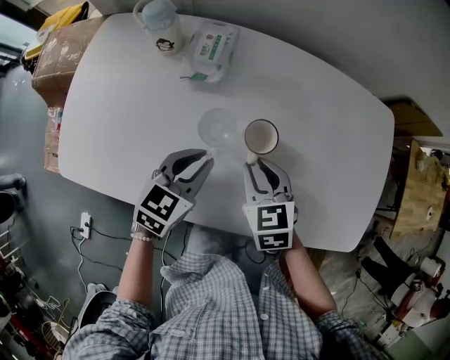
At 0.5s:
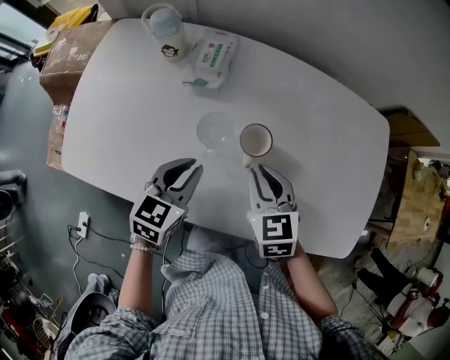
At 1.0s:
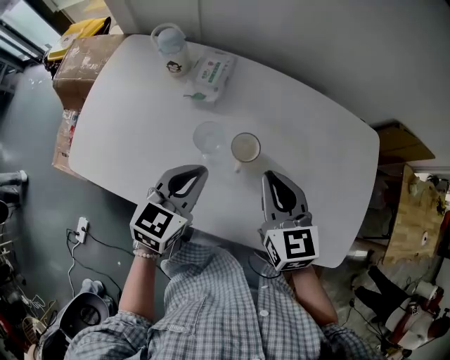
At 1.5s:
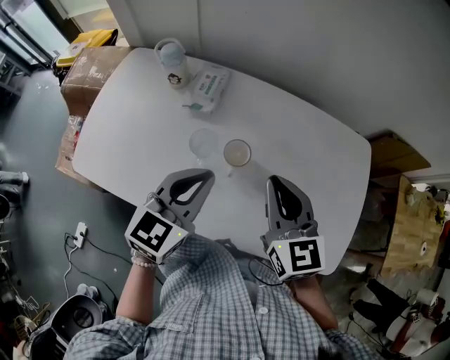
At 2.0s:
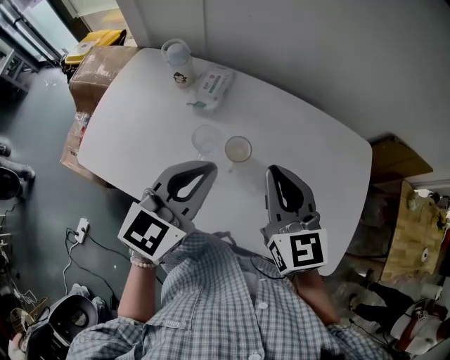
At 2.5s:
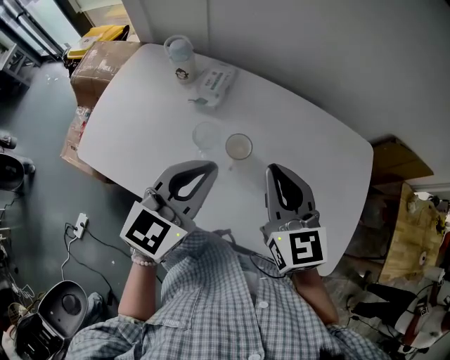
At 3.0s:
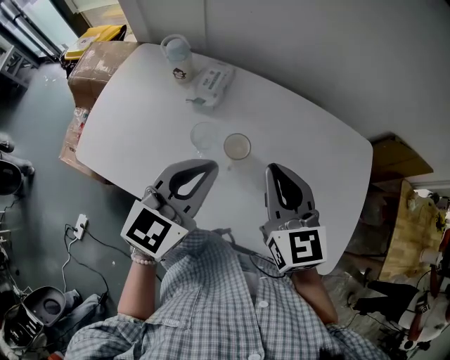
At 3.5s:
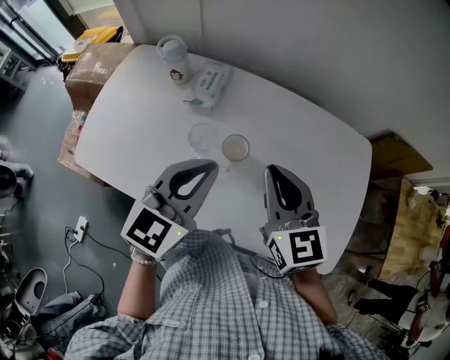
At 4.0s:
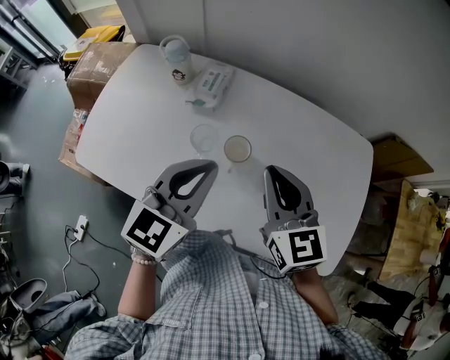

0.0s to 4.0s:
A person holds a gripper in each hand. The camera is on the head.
0.0s to 2.0s: Both grippers travel together upward, some 20 cm. The right gripper tilts its fingers roughly 30 degrees upward; the left gripper swivels roughly 20 degrees.
2.0s to 4.0s: The grippers make only small movements.

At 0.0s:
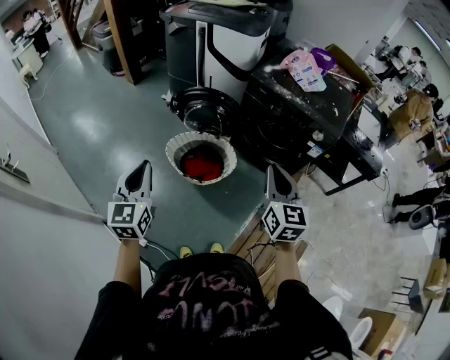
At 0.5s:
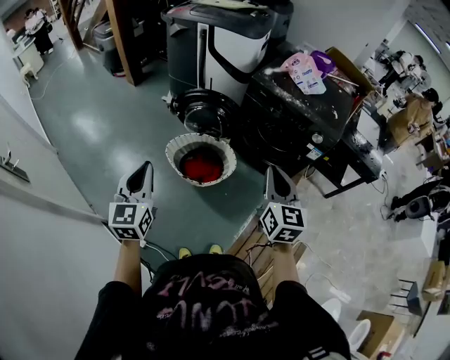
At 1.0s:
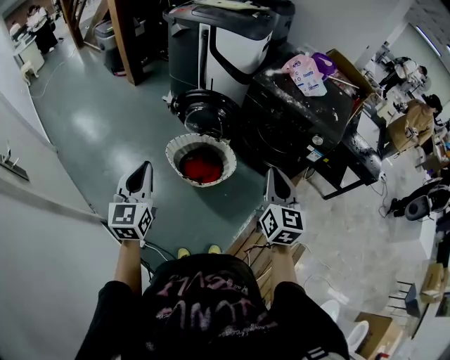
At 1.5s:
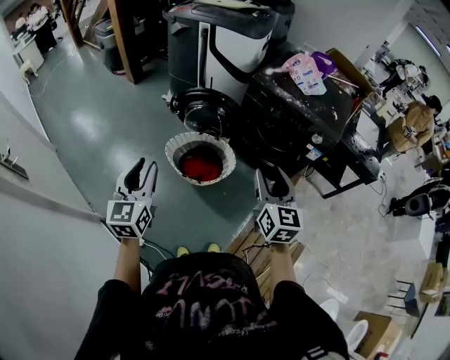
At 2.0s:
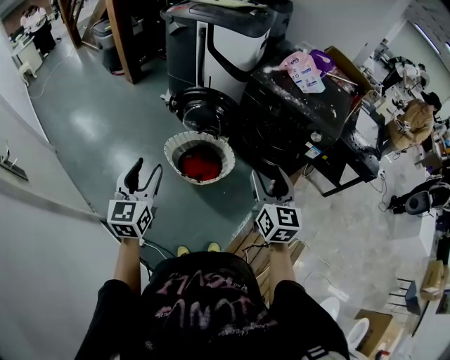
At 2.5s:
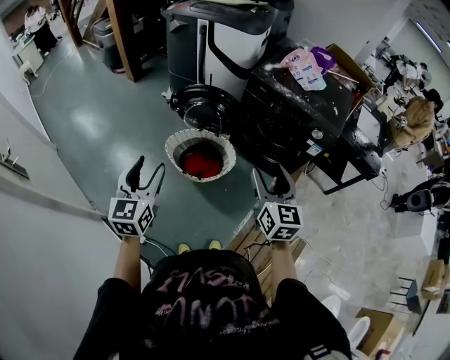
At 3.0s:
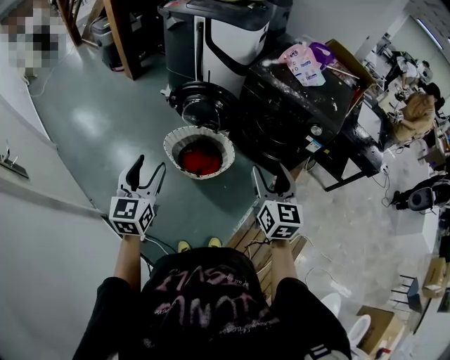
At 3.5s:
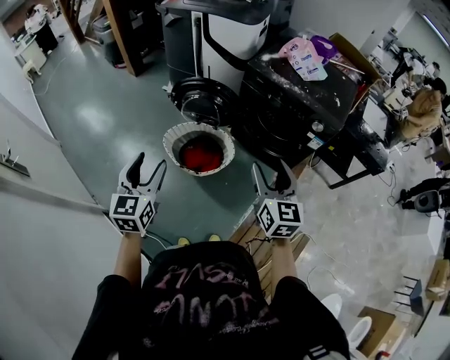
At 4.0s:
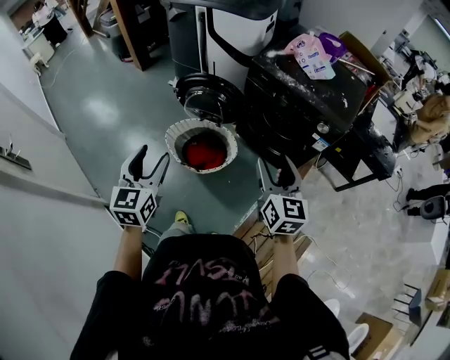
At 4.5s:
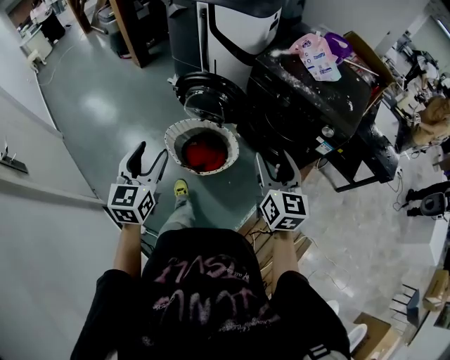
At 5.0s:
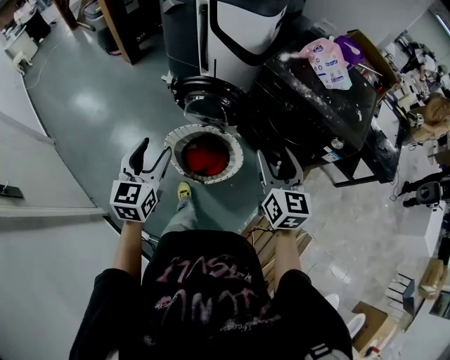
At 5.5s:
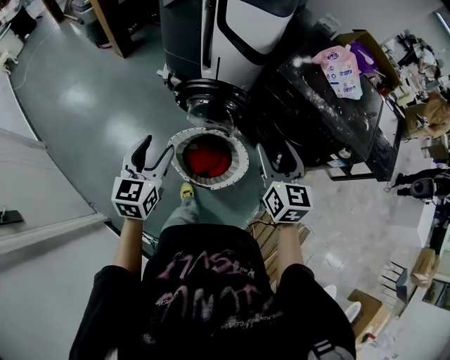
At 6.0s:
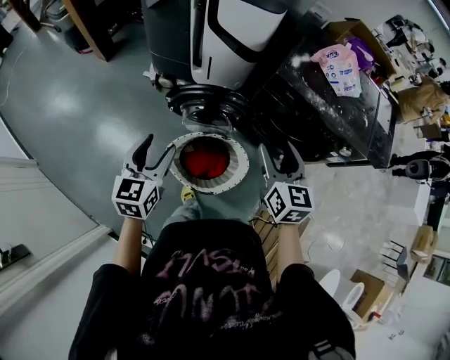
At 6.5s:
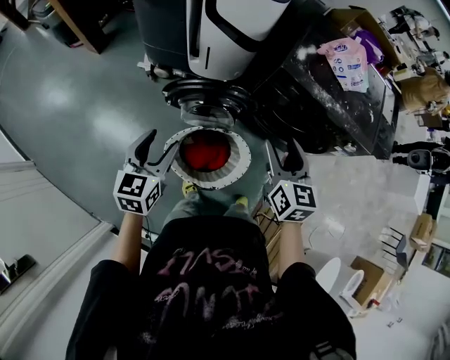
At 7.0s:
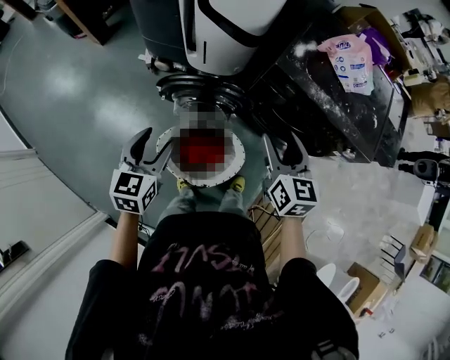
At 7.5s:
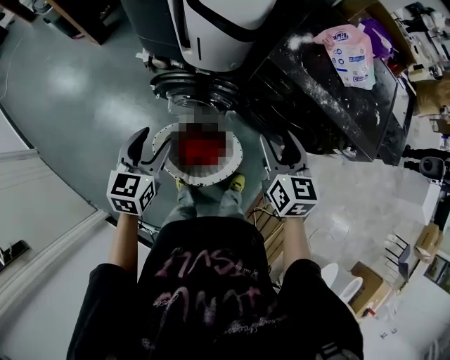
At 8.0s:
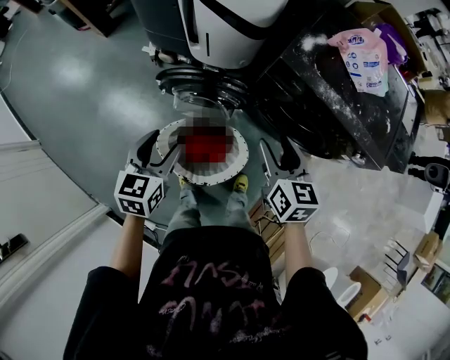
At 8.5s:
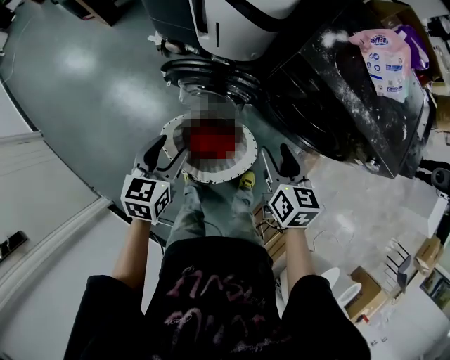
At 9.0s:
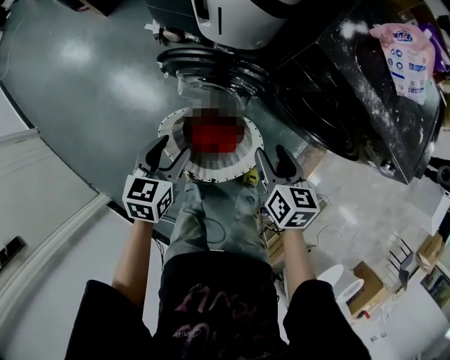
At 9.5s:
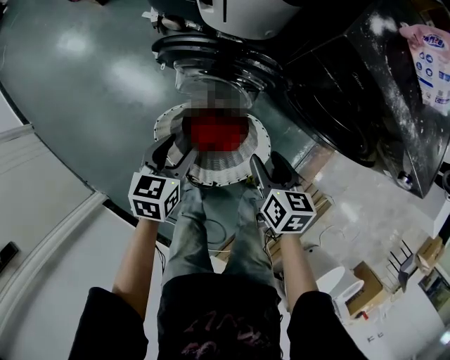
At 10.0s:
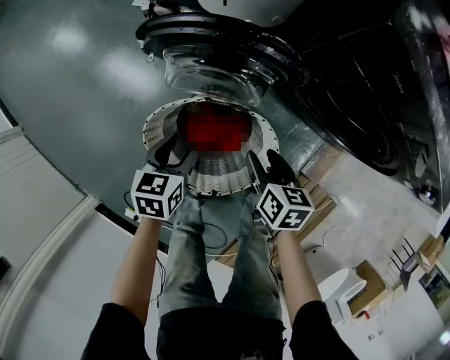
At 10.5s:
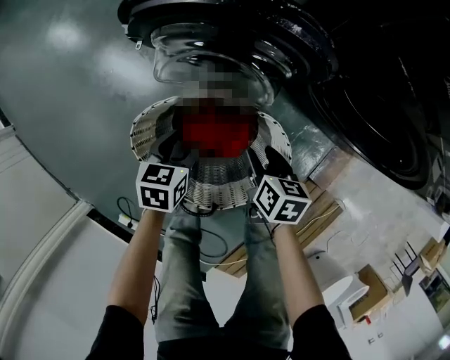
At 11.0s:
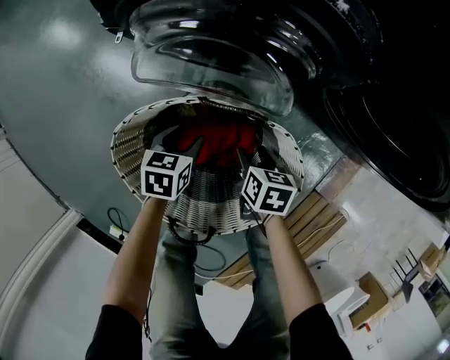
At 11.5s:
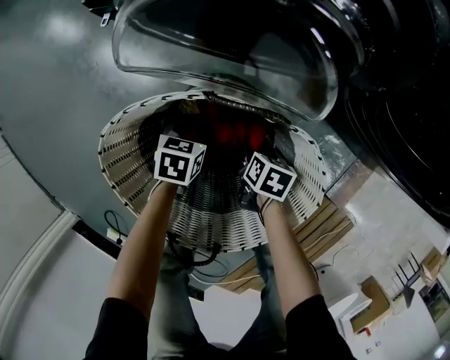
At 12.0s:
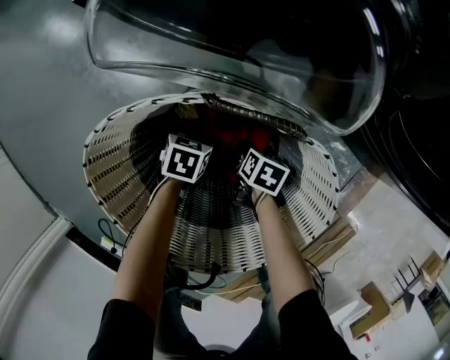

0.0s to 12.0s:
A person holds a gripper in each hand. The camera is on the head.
0.0s to 2.0s: The left gripper opens its fingers; the right gripper opens up.
2.0s to 4.0s: The grippers both shift to the right by roughly 10 cm.
4.0s to 6.0s: Both grippers move forward and to the left, about 35 cm.
6.0s to 8.0s: The left gripper is displaced to the right, downward and forward by approximately 15 cm. Meanwhile the right gripper heads downward, forward and to the right, covering roughly 15 cm.
8.0s to 10.0s: The grippers both shift downward by approximately 35 cm. The right gripper swivels approximately 30 degrees.
10.0s to 12.0s: The two grippers go about 40 cm downward. The right gripper swivels approximately 20 degrees; the left gripper changes its angle by roughly 20 degrees.

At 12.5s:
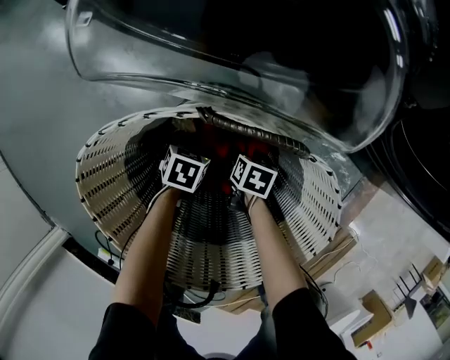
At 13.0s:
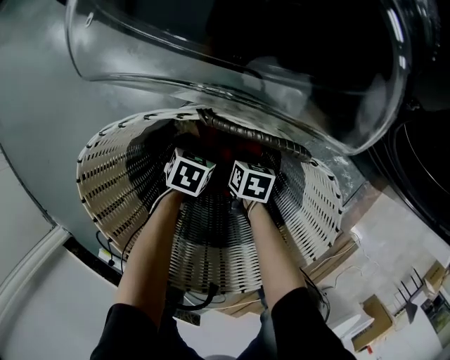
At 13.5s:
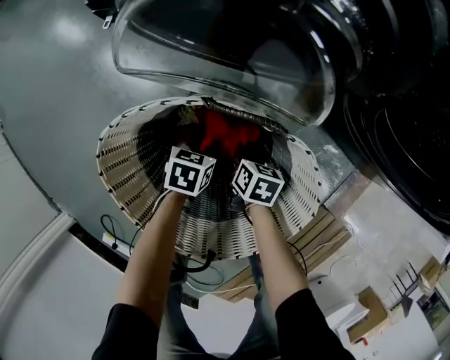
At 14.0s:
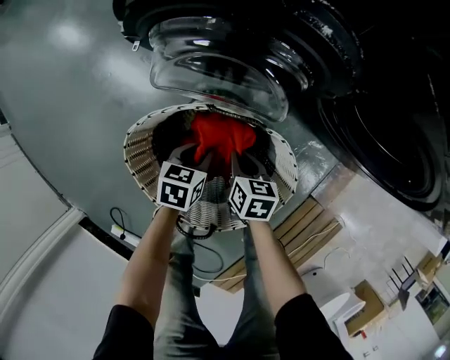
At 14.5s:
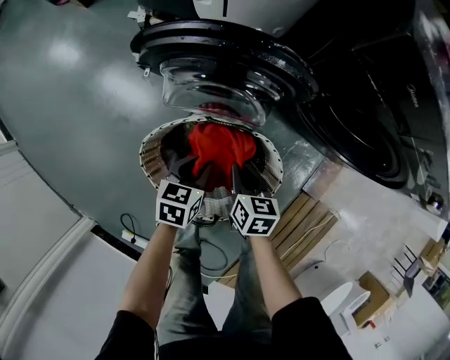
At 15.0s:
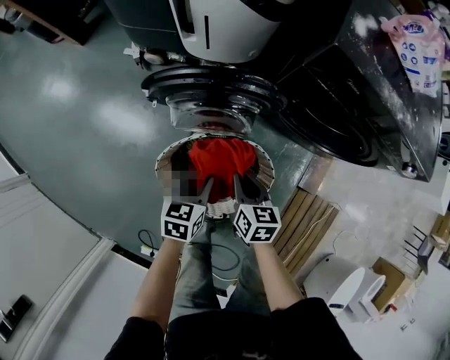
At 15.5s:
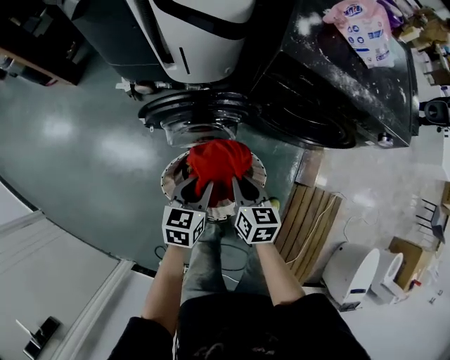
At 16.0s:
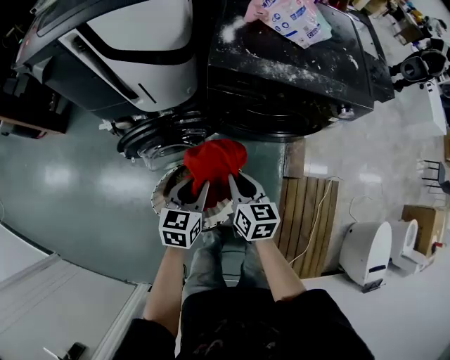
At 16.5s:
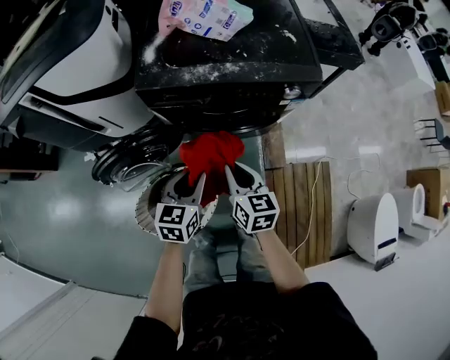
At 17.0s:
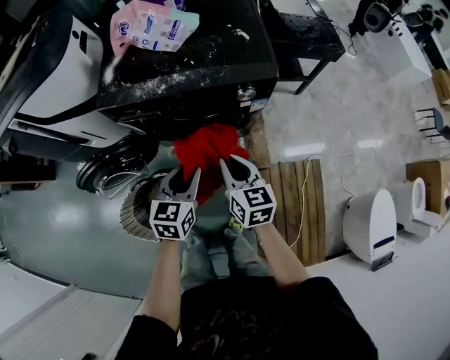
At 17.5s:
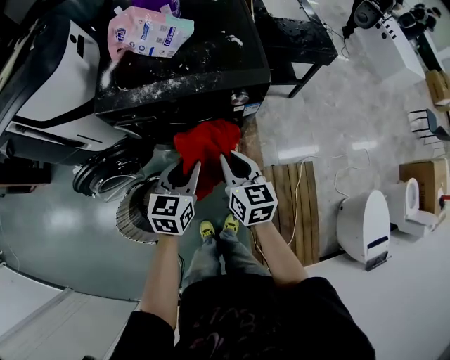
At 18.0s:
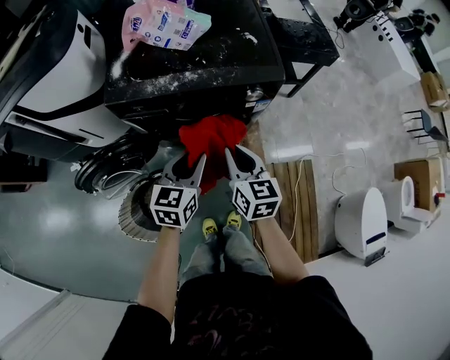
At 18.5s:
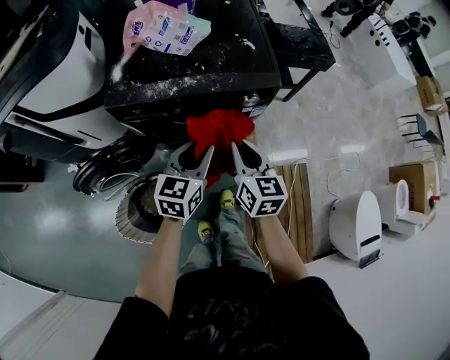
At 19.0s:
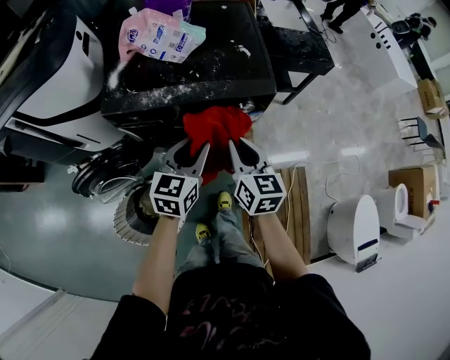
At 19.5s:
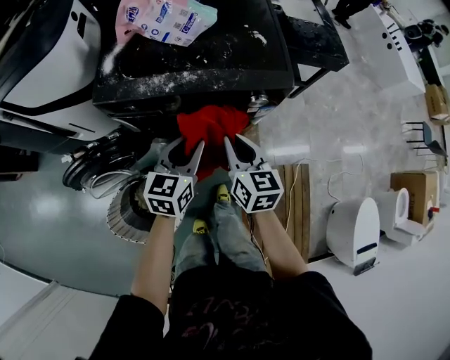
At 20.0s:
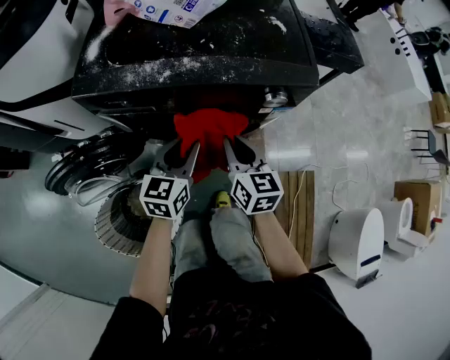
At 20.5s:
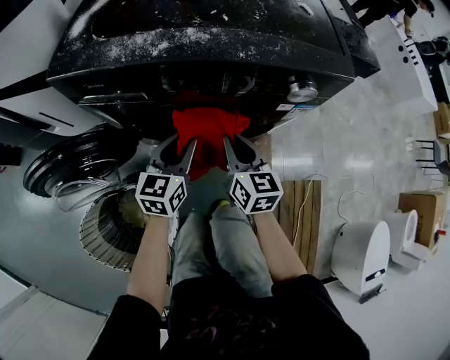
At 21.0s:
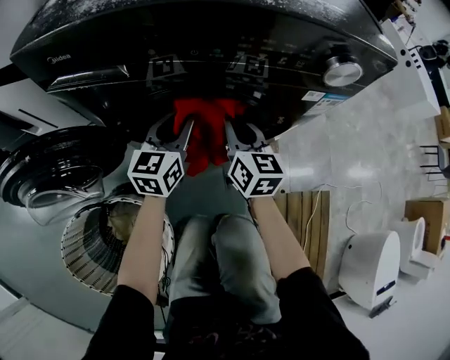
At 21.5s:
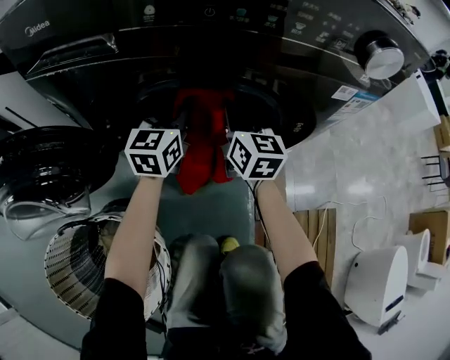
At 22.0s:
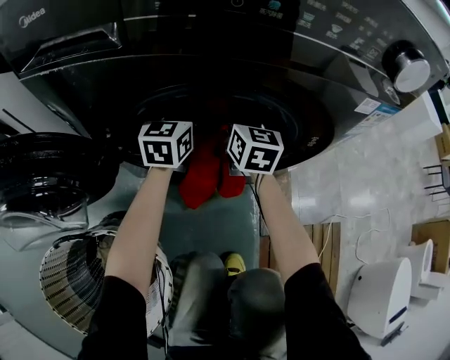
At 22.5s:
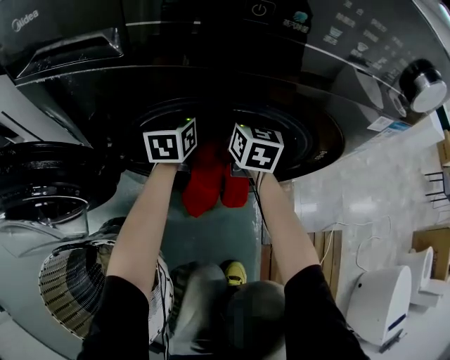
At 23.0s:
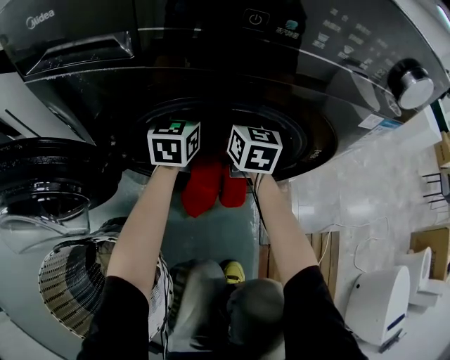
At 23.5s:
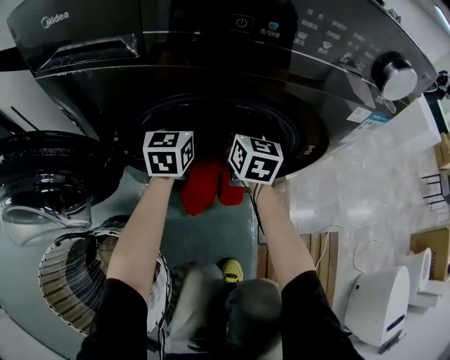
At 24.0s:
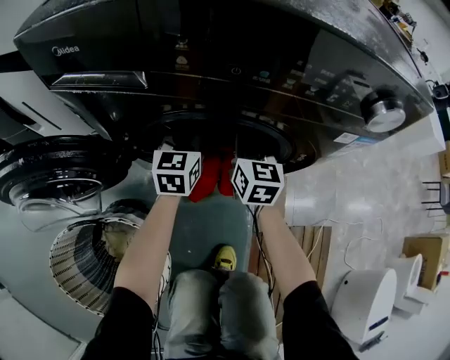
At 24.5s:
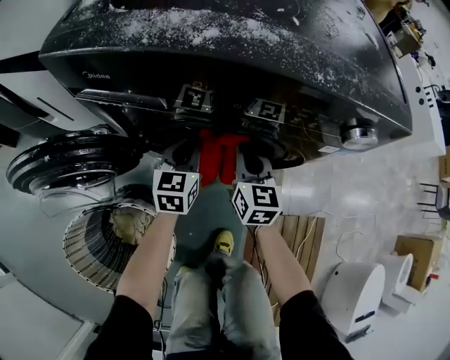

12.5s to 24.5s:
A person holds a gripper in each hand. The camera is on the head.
12.5s to 14.5s: Both grippers travel together upward, some 40 cm. The right gripper turns by some 30 degrees, and closes up. Meanwhile the left gripper changes its angle by about 20 degrees, and closes up.
14.5s to 16.5s: Both grippers move upward, about 35 cm. The left gripper rotates some 40 degrees. Meanwhile the right gripper changes its angle by roughly 40 degrees.
16.5s to 18.5s: The right gripper moves to the right, upward and forward, about 20 cm, while the left gripper moves to the right, forward and upward, about 20 cm.
18.5s to 20.5s: Both grippers move downward, about 25 cm.
20.5s to 22.5s: The grippers both shift forward and downward by some 30 cm.
22.5s to 24.5s: The grippers both shift backward and upward by about 20 cm. The left gripper closes.
